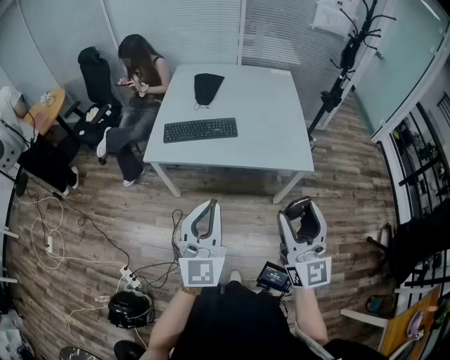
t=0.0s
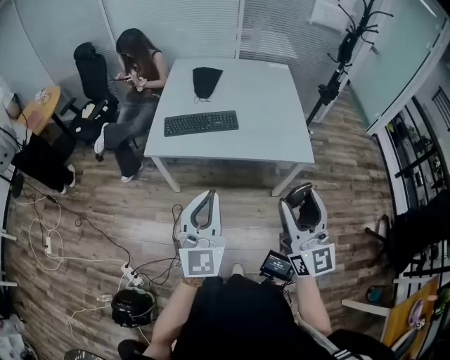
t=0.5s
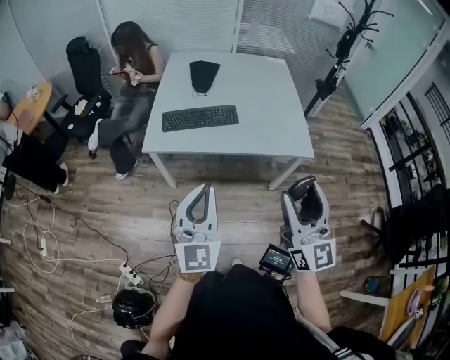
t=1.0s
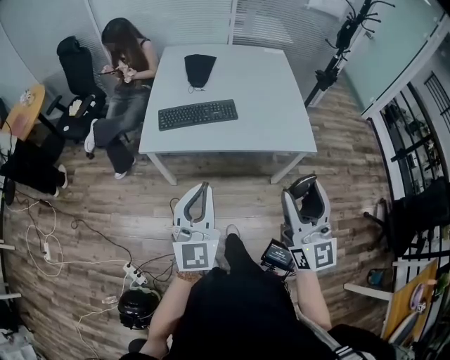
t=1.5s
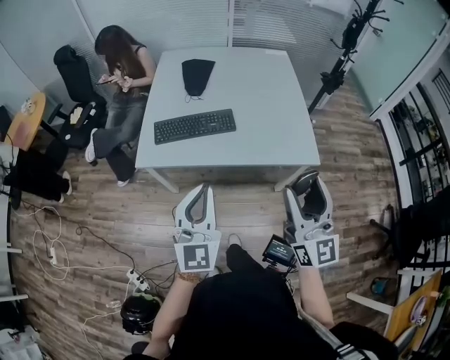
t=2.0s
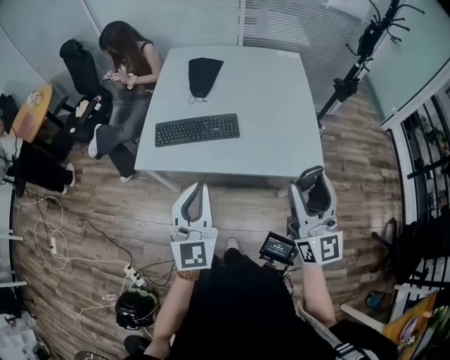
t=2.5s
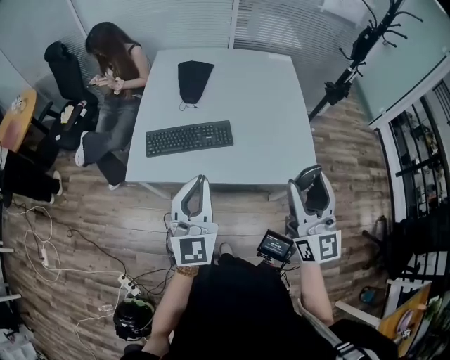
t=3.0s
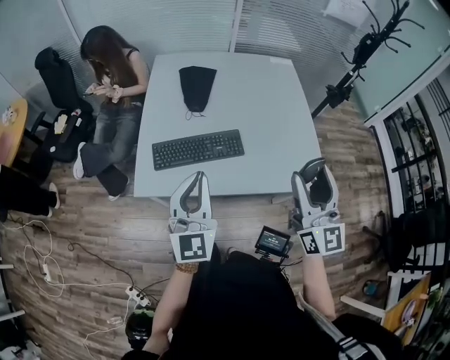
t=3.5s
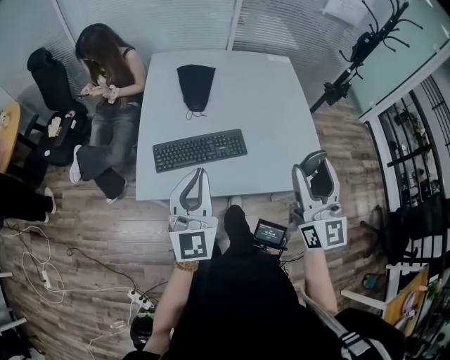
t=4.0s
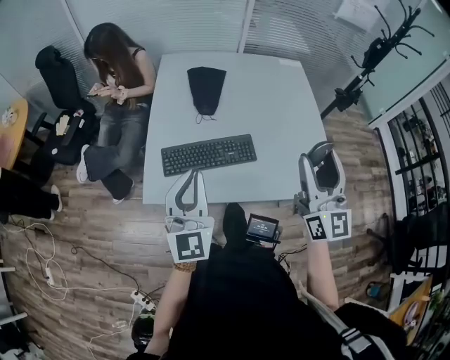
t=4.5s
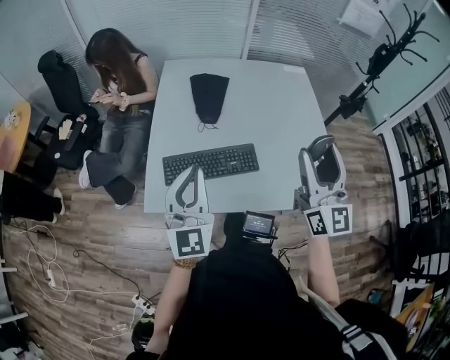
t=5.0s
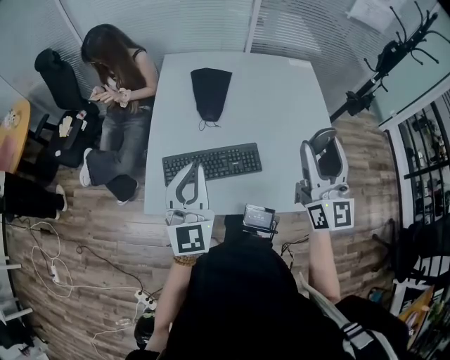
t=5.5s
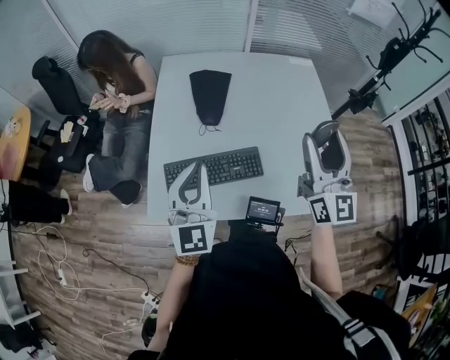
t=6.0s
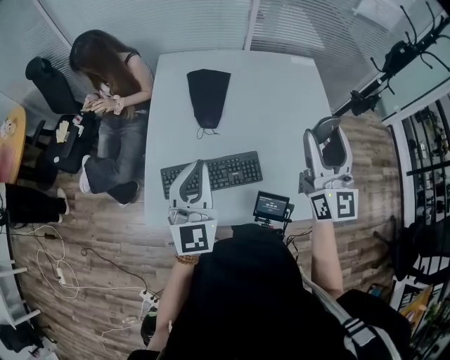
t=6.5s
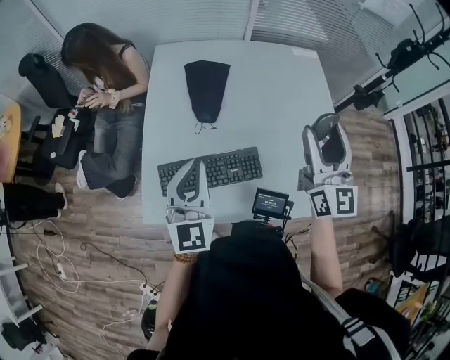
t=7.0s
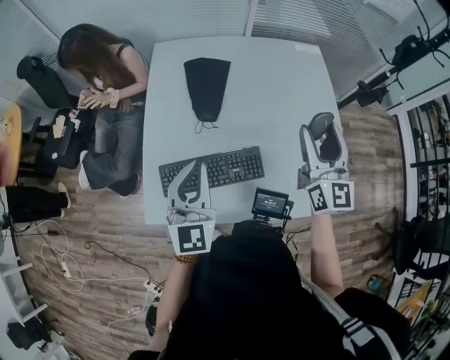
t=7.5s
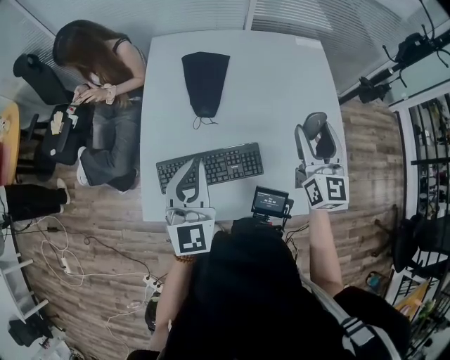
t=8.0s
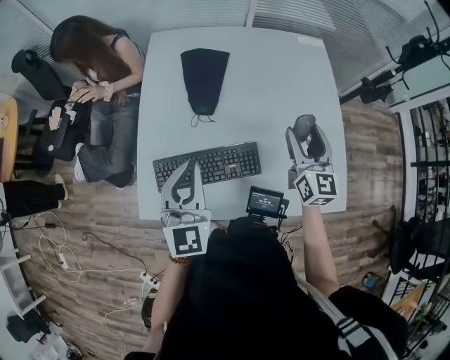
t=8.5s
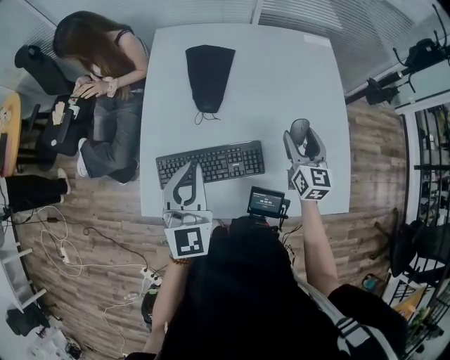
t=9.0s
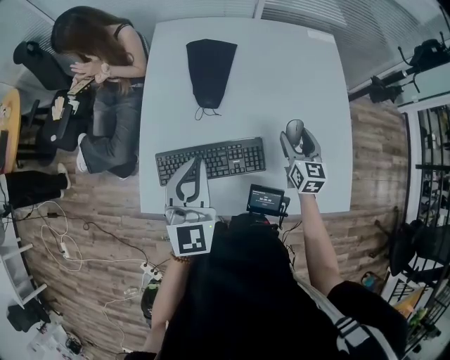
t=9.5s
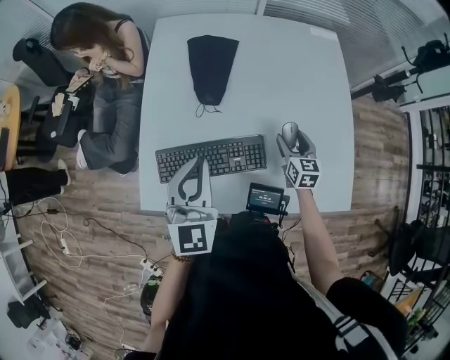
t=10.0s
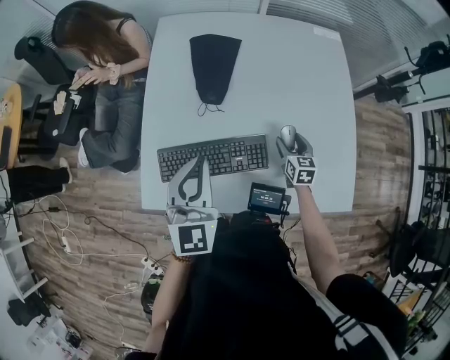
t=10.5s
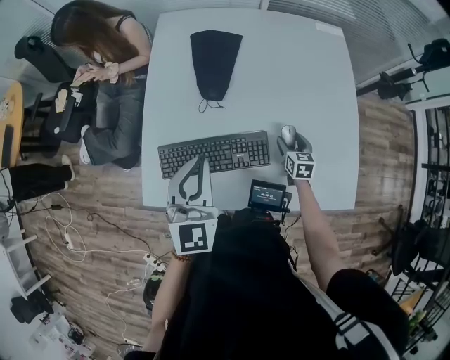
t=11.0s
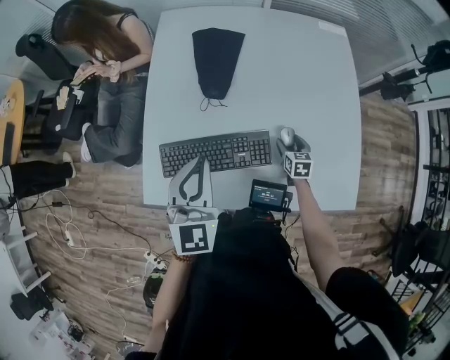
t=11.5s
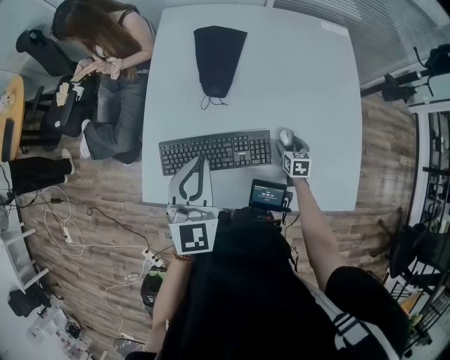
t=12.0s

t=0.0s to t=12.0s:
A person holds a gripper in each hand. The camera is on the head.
t=0.0s to t=2.0s: Both grippers travel together forward, roughly 15 cm.
t=2.0s to t=4.0s: The left gripper moves forward and to the left, about 25 cm; the right gripper shifts roughly 20 cm forward.
t=4.0s to t=6.0s: The grippers both shift forward by some 15 cm.
t=6.0s to t=8.0s: The right gripper shifts about 15 cm downward and forward. The left gripper moves forward, some 5 cm.
t=8.0s to t=10.0s: The right gripper shifts about 25 cm downward, and tilts its fingers some 30 degrees downward.
t=10.0s to t=12.0s: The right gripper goes about 15 cm downward.

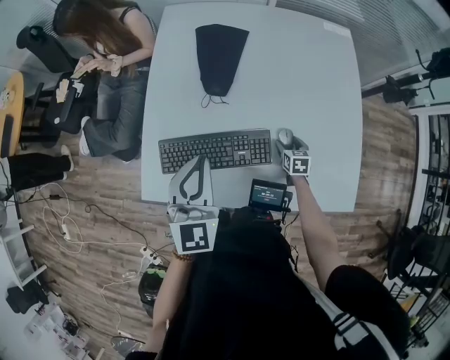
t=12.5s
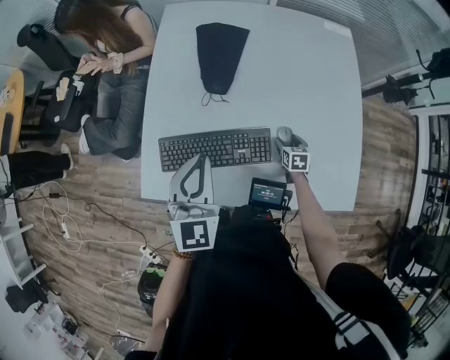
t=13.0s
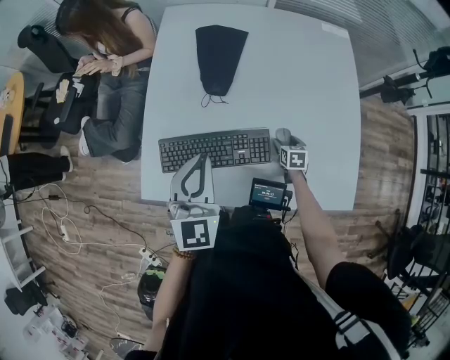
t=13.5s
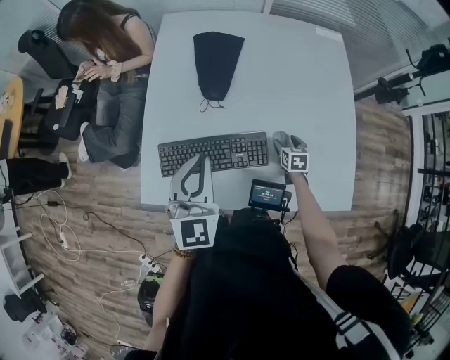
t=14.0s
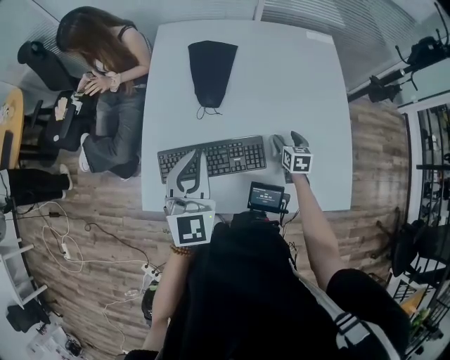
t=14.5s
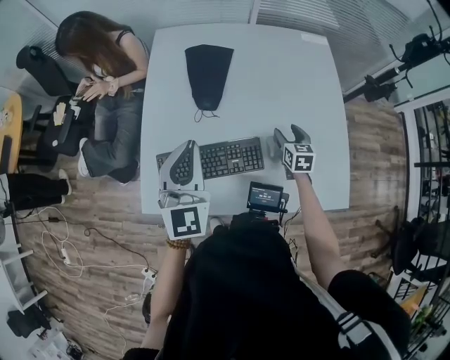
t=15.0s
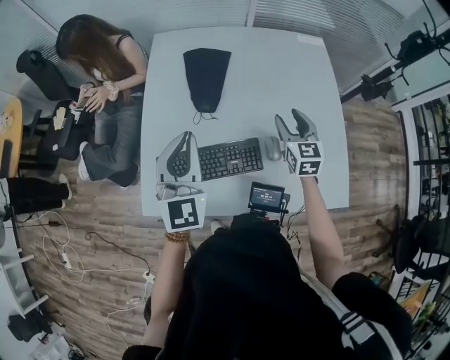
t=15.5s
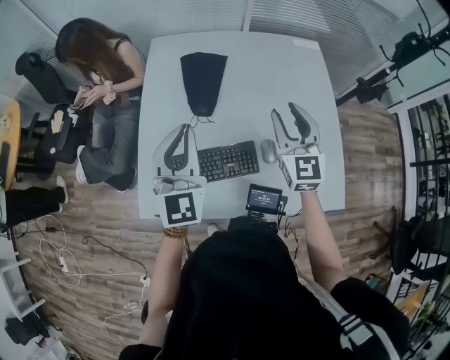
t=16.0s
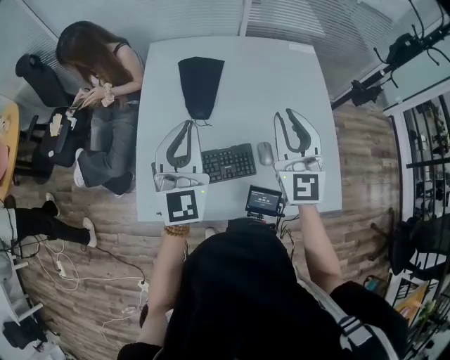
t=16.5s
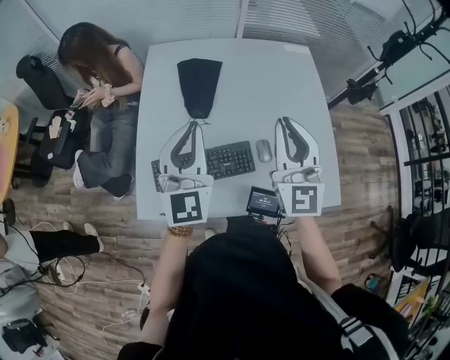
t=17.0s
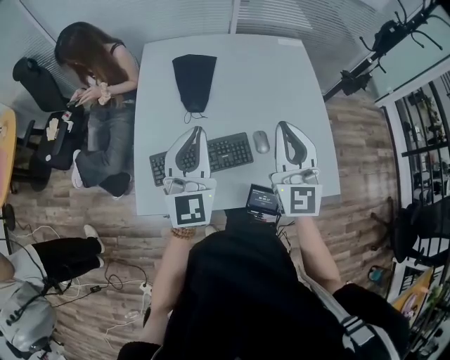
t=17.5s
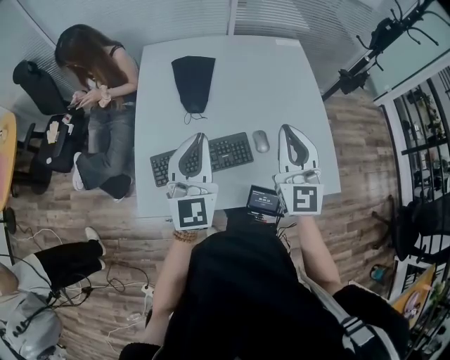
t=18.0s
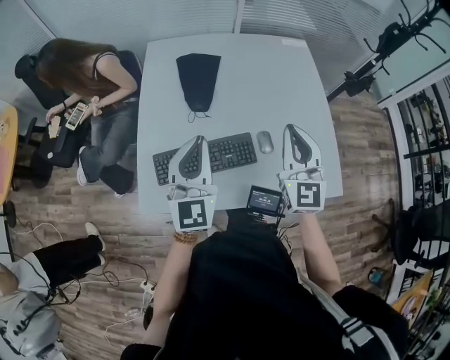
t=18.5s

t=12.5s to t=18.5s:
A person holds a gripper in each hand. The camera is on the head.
t=12.5s to t=14.5s: The right gripper heads upward, covering roughly 10 cm.
t=14.5s to t=16.5s: The left gripper heads upward, covering approximately 5 cm. Meanwhile the right gripper moves upward, about 35 cm, points its fingers about 50 degrees further upward, and closes its fingers.
t=16.5s to t=18.5s: Both grippers travel together backward, about 5 cm.

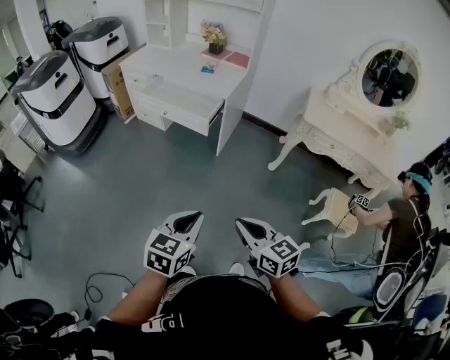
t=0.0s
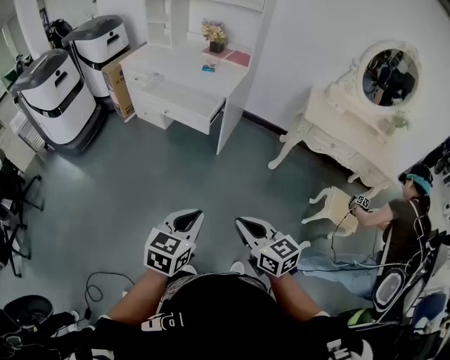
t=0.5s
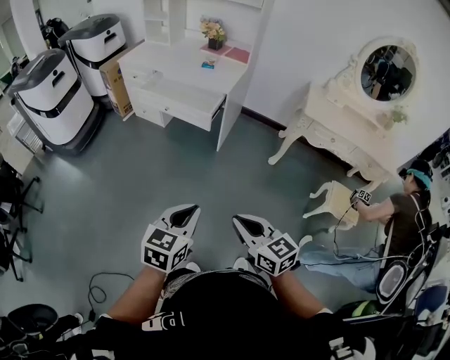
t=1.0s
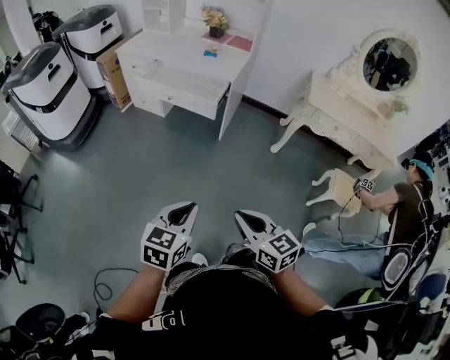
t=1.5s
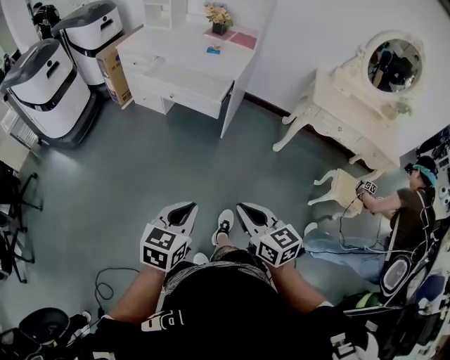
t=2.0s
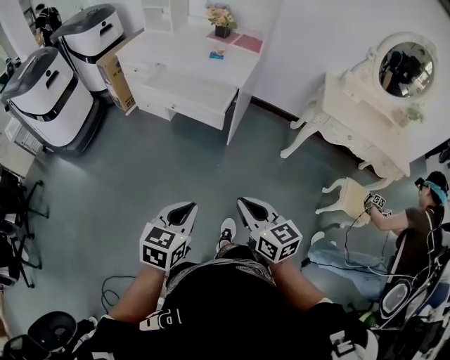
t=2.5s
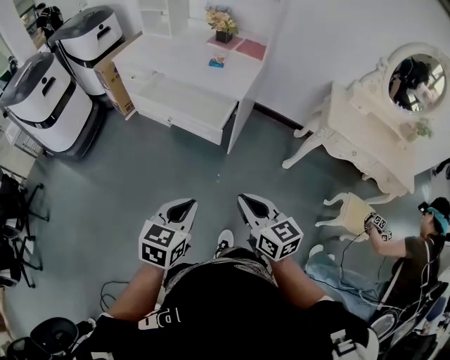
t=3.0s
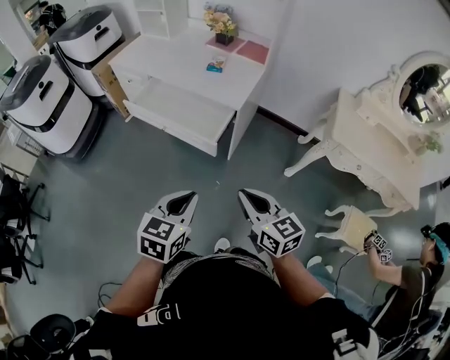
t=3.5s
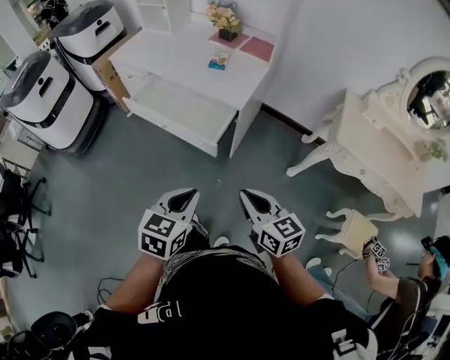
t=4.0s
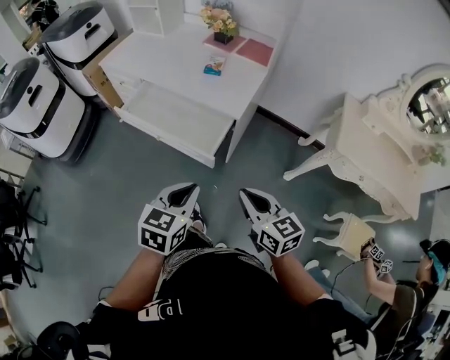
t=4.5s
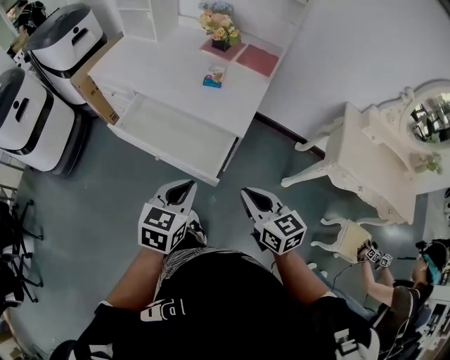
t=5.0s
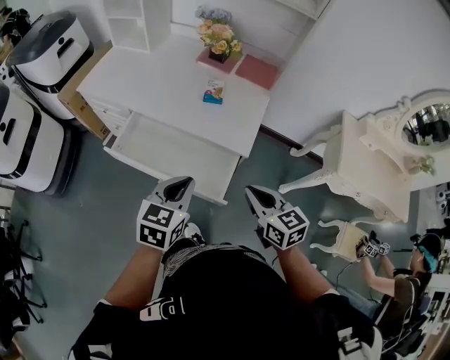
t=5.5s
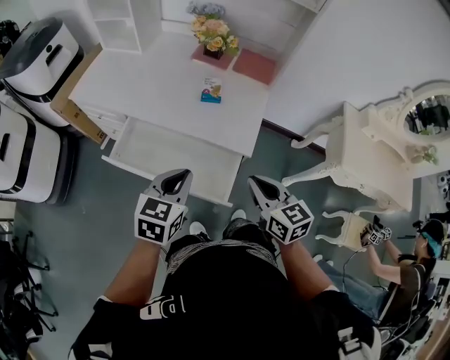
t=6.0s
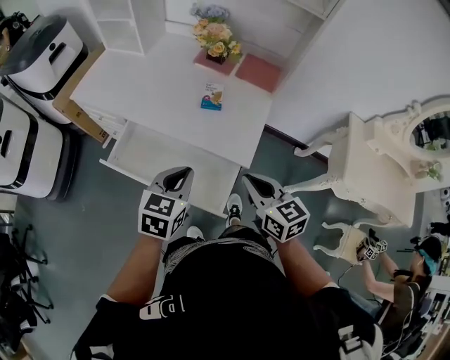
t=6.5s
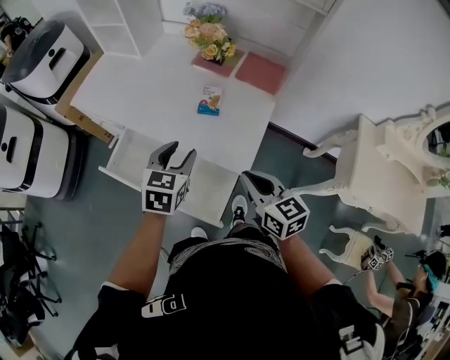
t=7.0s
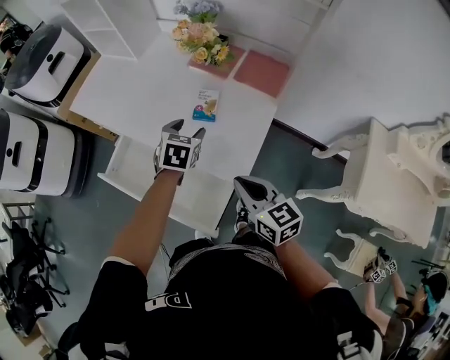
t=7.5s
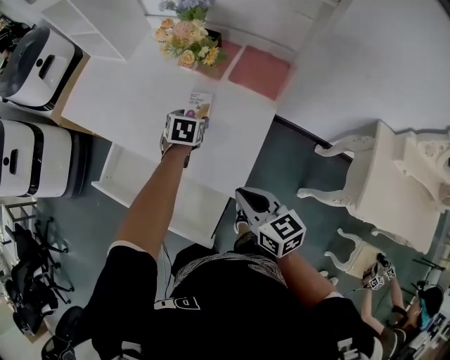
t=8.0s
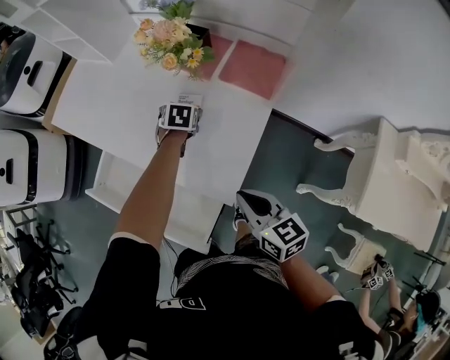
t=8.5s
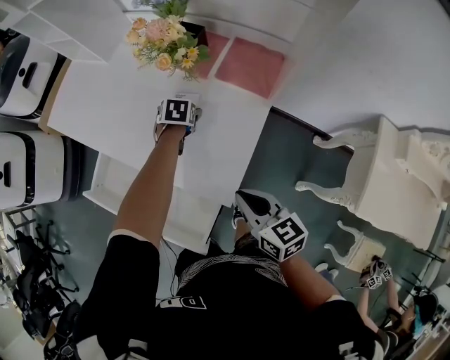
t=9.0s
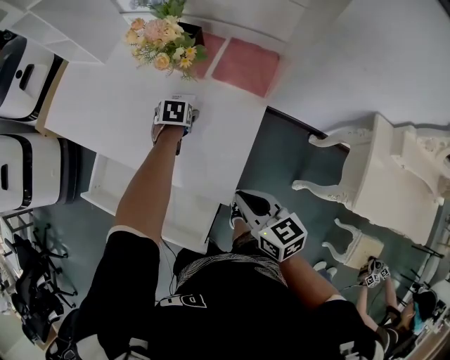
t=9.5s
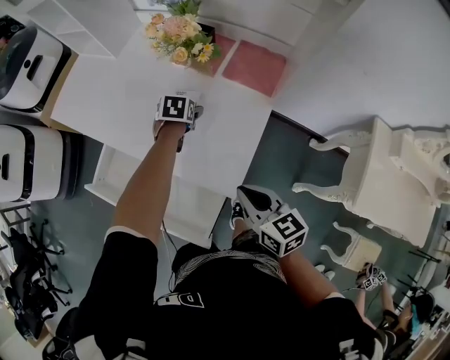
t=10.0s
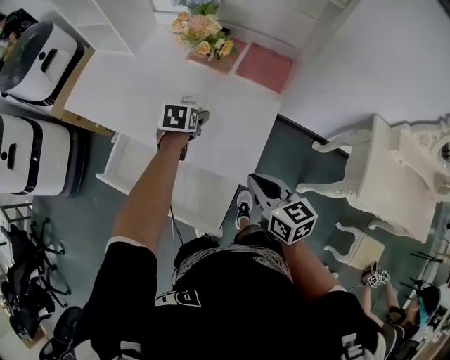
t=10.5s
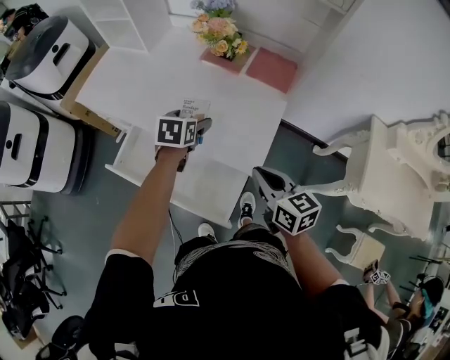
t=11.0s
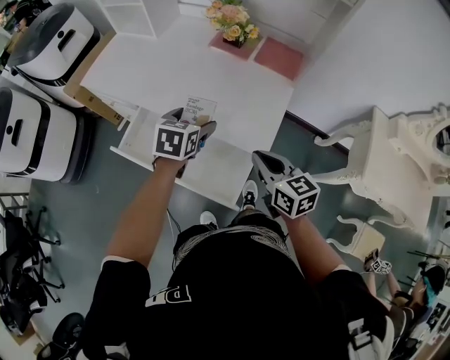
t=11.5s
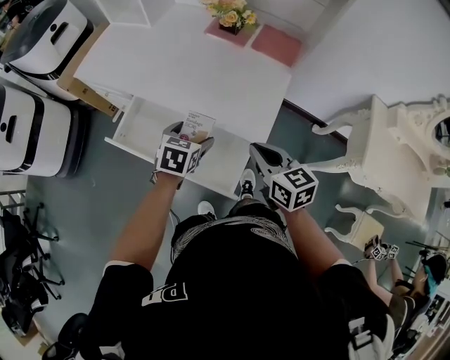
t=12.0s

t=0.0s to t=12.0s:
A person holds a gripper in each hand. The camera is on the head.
t=0.0s to t=2.0s: The two grippers go roughly 10 cm to the left.
t=2.0s to t=4.0s: Both grippers move forward, approximately 35 cm.
t=4.0s to t=6.0s: The grippers both shift forward by some 35 cm.
t=6.0s to t=8.0s: The right gripper goes some 20 cm forward, to the right and downward; the left gripper travels forward, downward and to the right by some 40 cm, turns by roughly 30 degrees, and opens up.
t=10.0s to t=12.0s: The left gripper is displaced backward by approximately 30 cm. Meanwhile the right gripper shifts about 10 cm to the left and backward.
